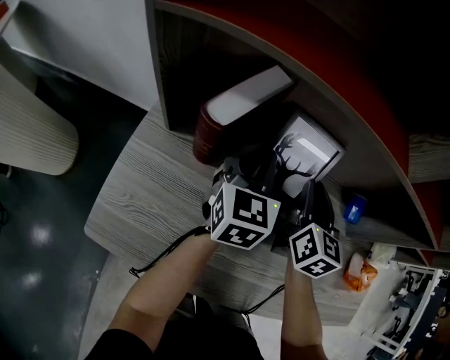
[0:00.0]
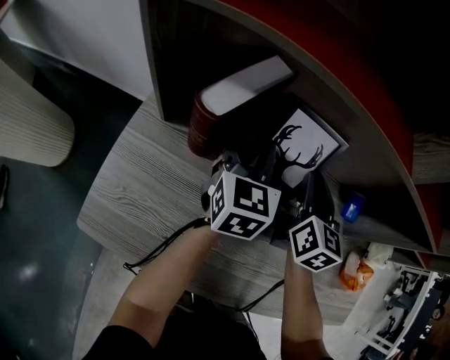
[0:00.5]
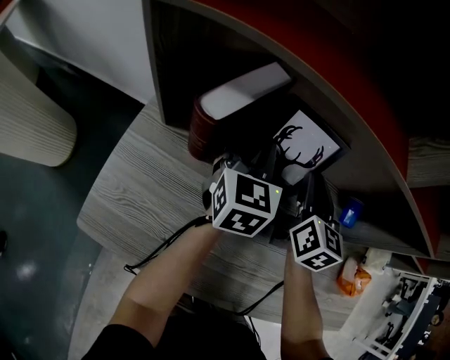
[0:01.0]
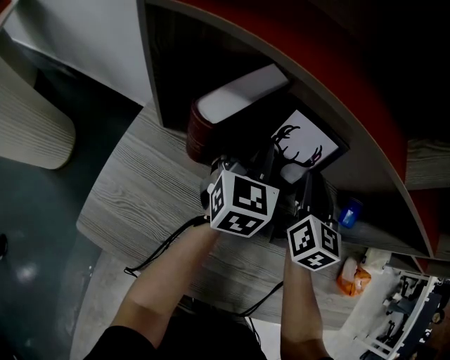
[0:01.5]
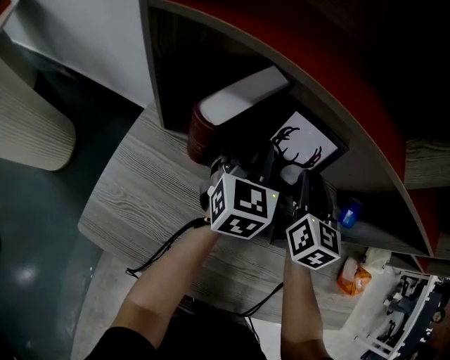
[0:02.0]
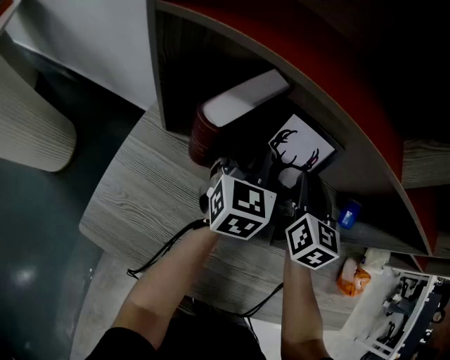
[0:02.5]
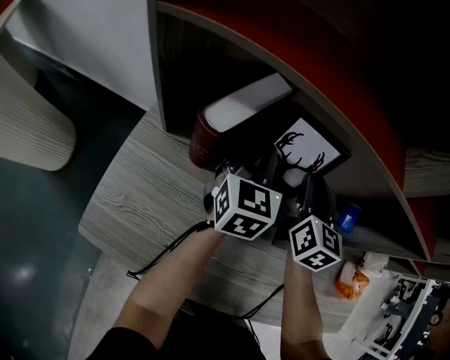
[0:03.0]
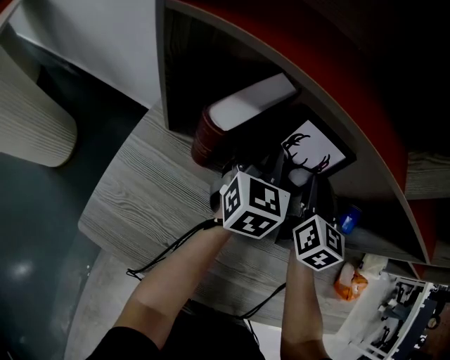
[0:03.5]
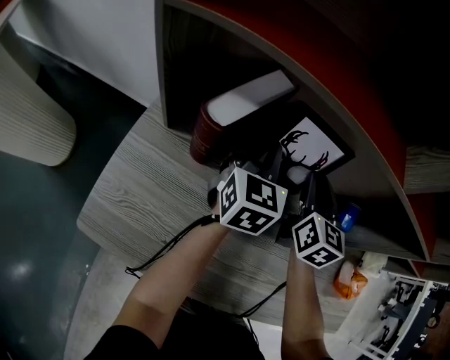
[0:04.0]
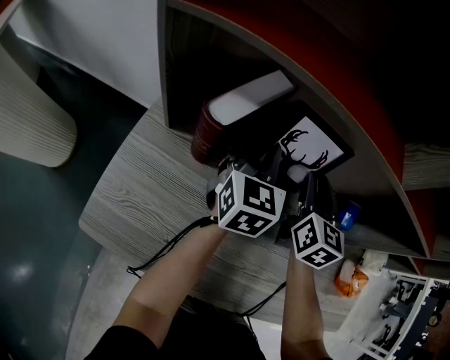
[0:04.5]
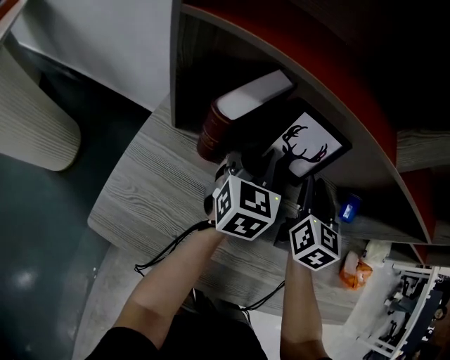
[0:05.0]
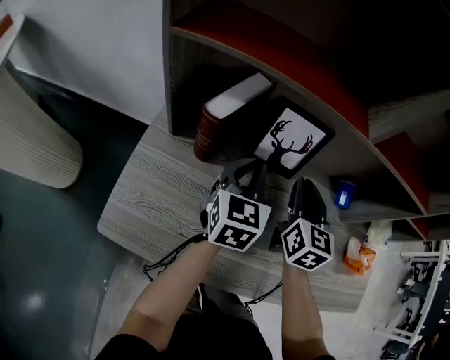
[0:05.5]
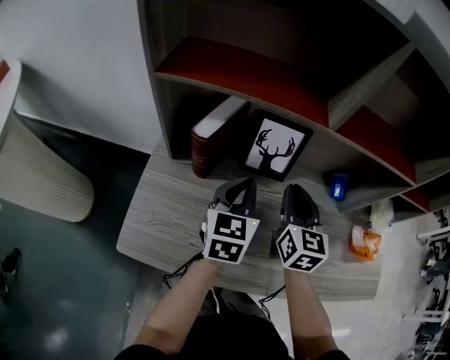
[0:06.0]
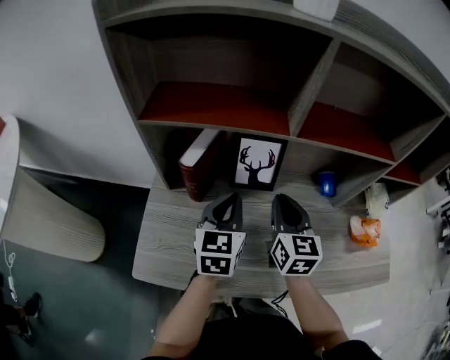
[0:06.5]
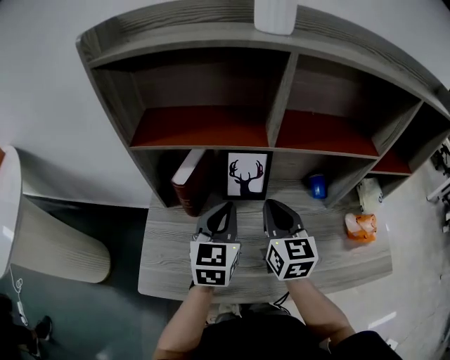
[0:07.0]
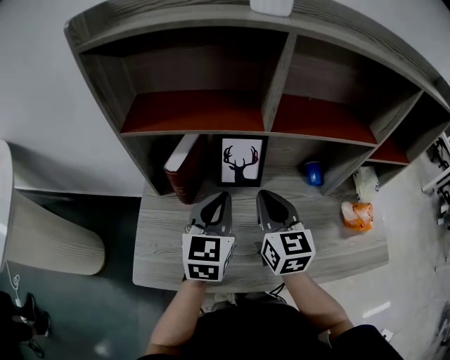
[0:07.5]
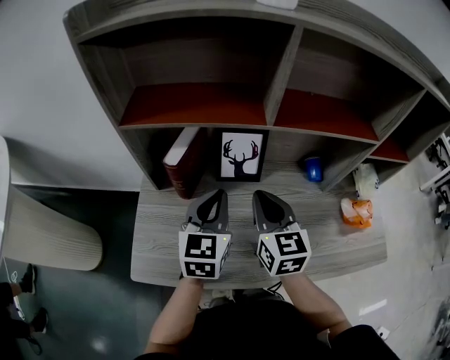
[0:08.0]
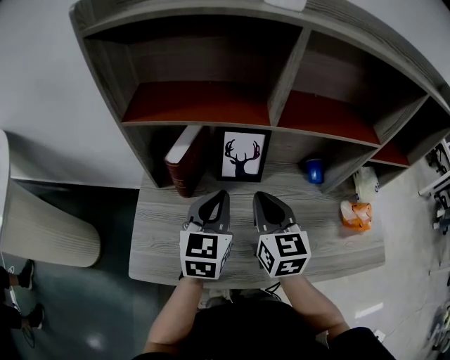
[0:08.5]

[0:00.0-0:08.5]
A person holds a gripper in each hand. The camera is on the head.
0:00.0 to 0:04.0: There are only small adjustments of the grippers.
0:04.0 to 0:06.5: Both grippers move backward and upward, approximately 15 cm.
0:06.5 to 0:08.5: The grippers make only small movements.

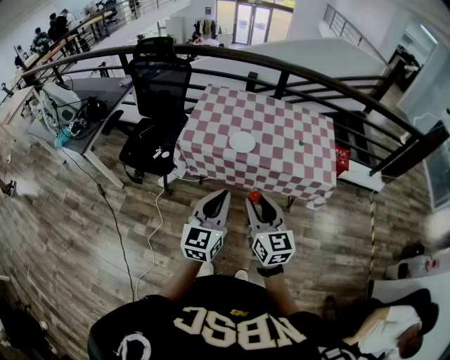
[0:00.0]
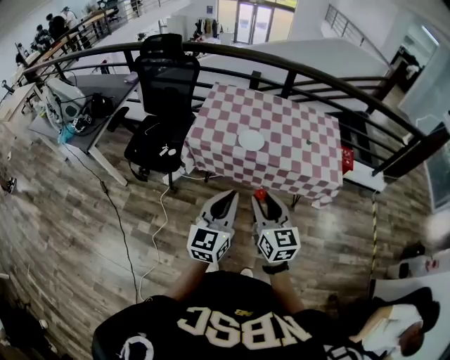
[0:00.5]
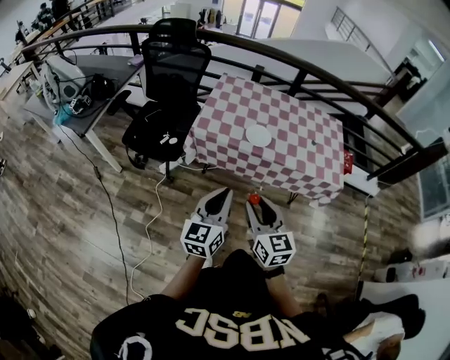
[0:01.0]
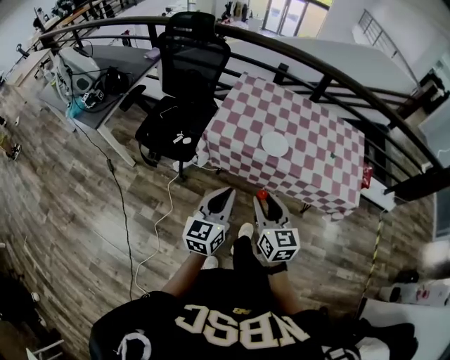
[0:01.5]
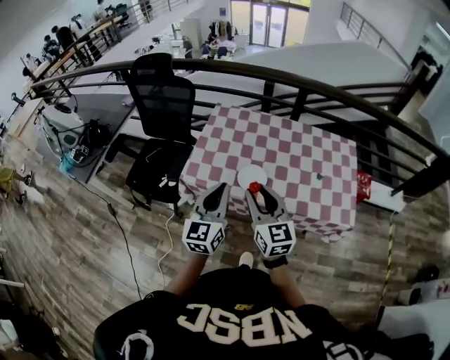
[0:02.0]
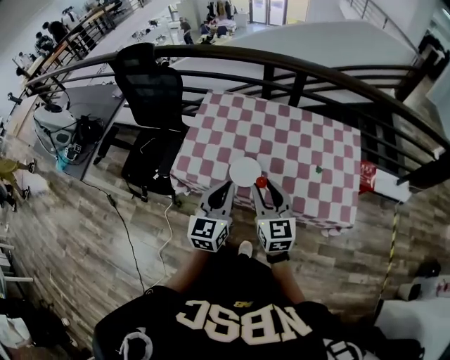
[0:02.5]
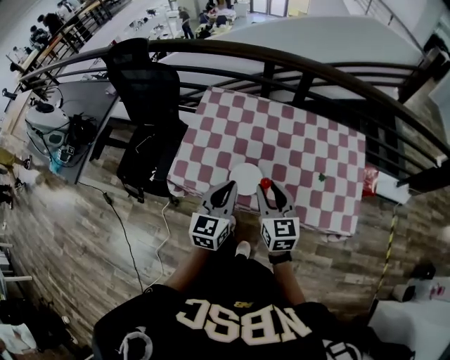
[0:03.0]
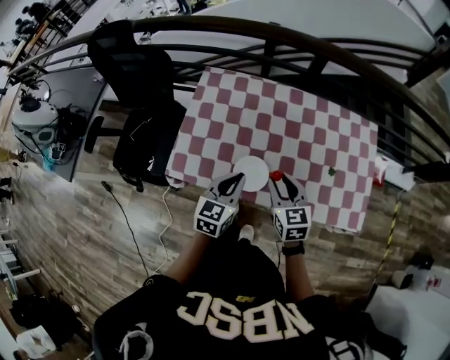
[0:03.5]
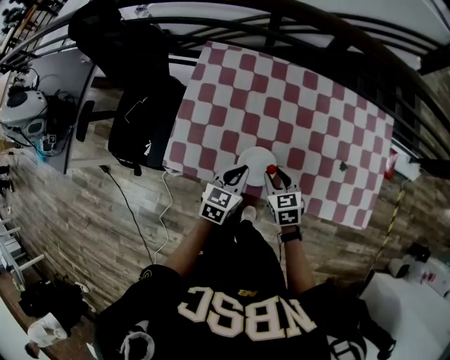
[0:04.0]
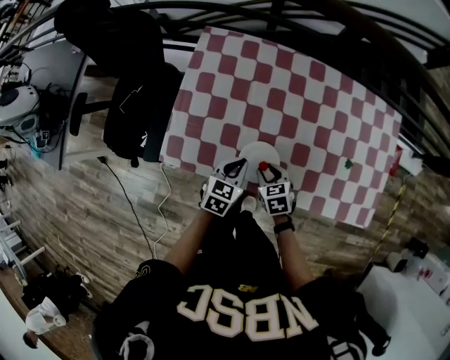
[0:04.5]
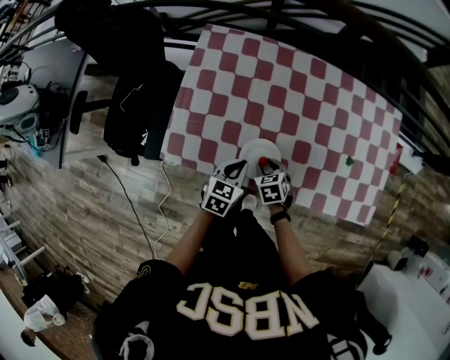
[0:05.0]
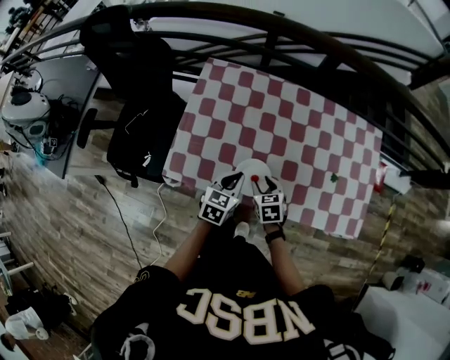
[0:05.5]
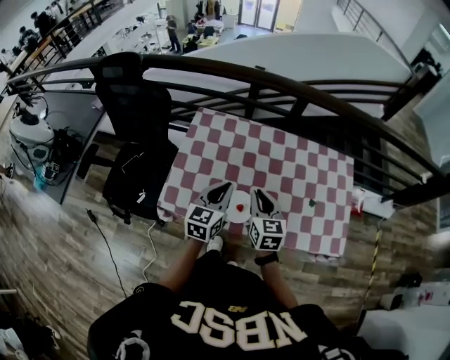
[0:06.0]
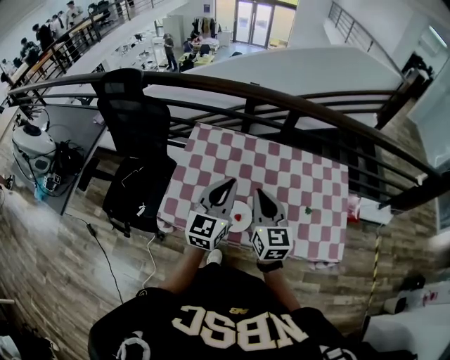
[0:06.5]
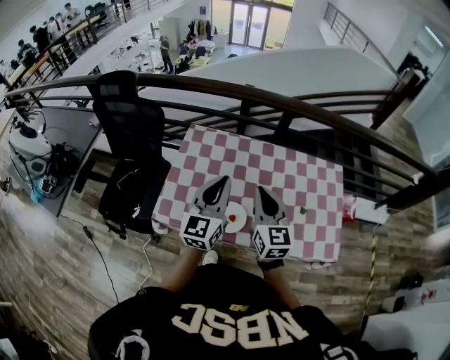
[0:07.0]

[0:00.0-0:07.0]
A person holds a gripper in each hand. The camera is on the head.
0:00.0 to 0:02.0: Both grippers move forward, about 25 cm.
0:02.0 to 0:03.5: The left gripper goes some 25 cm forward and downward, and rotates approximately 30 degrees; the right gripper heads forward, downward and to the right, covering some 25 cm, and changes its angle by about 30 degrees.
0:03.5 to 0:05.0: Both grippers move downward, some 20 cm. The right gripper angles its fingers downward, by approximately 30 degrees.
0:05.0 to 0:07.0: Both grippers travel together upward, approximately 35 cm. The left gripper tips its fingers upward by roughly 50 degrees, while the right gripper tips its fingers upward by some 60 degrees, and closes its fingers.

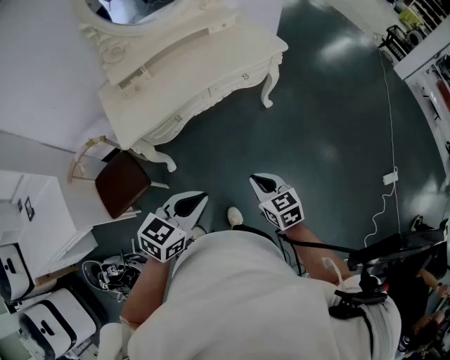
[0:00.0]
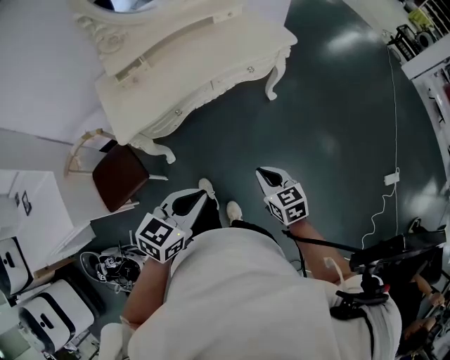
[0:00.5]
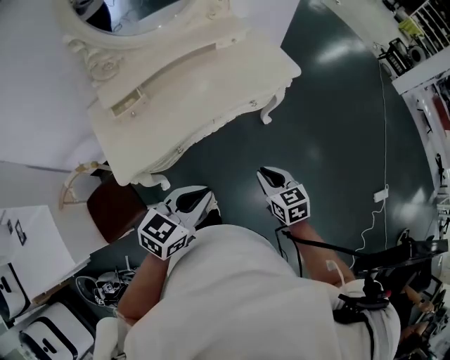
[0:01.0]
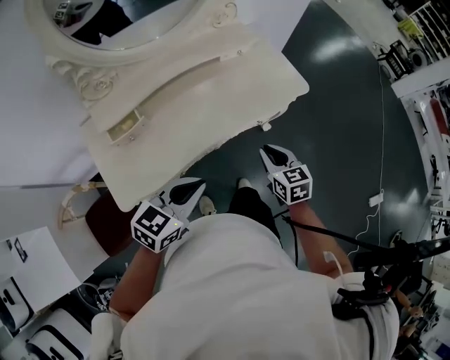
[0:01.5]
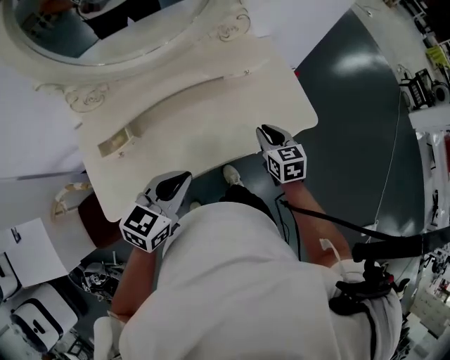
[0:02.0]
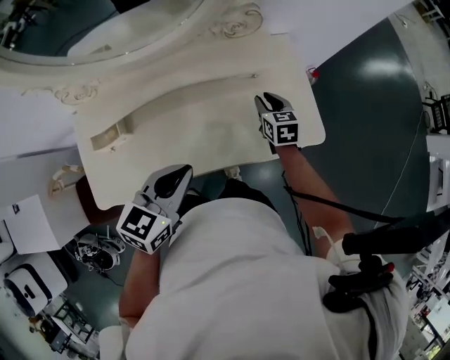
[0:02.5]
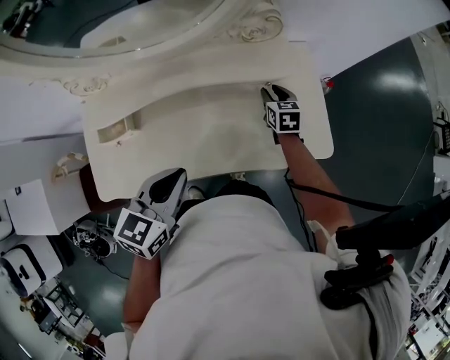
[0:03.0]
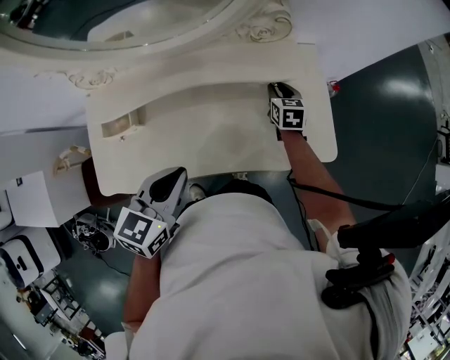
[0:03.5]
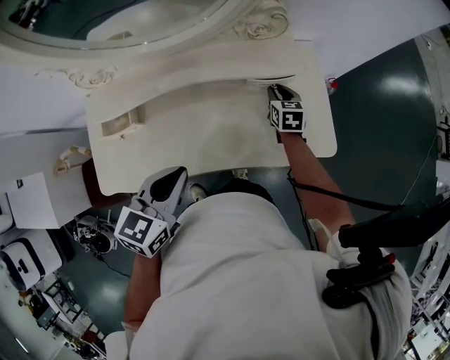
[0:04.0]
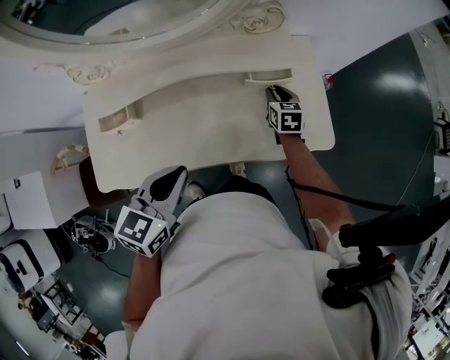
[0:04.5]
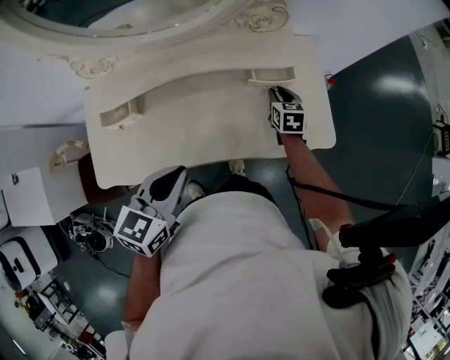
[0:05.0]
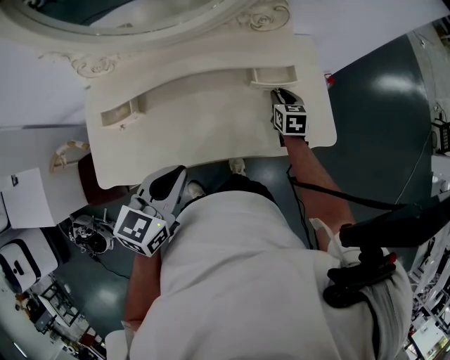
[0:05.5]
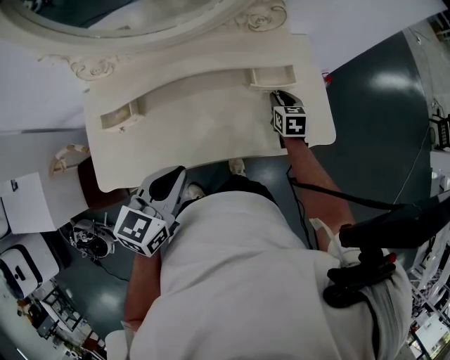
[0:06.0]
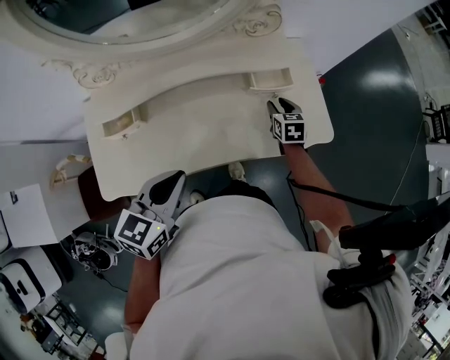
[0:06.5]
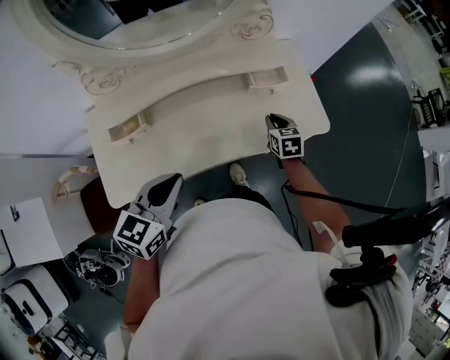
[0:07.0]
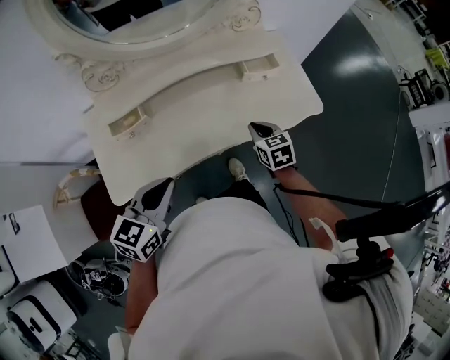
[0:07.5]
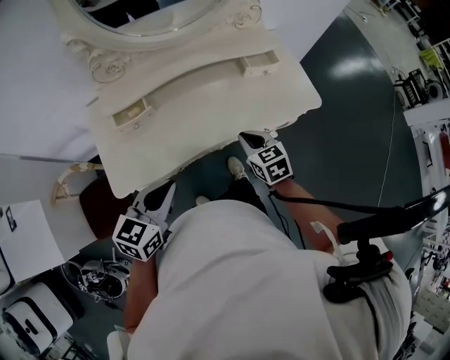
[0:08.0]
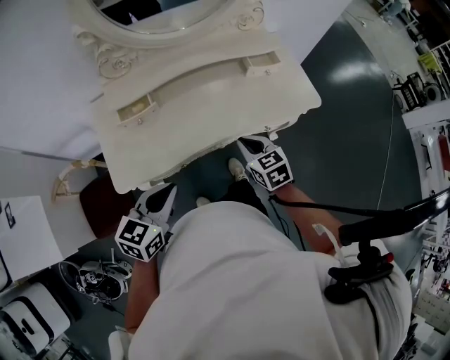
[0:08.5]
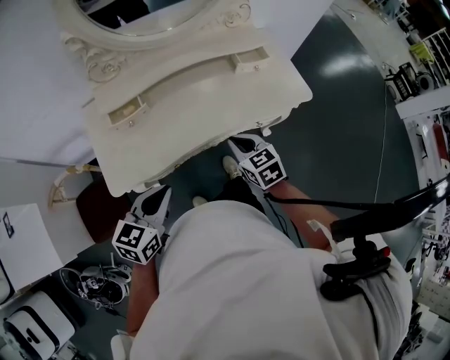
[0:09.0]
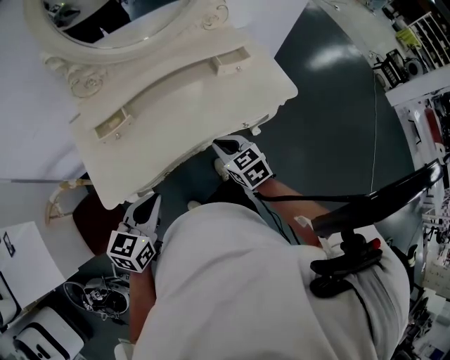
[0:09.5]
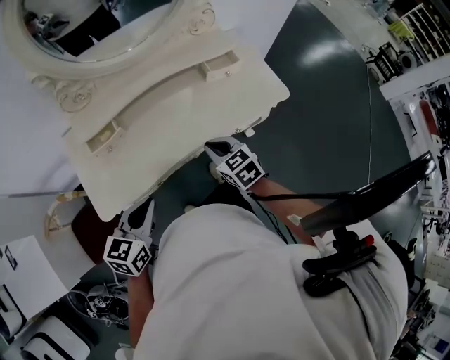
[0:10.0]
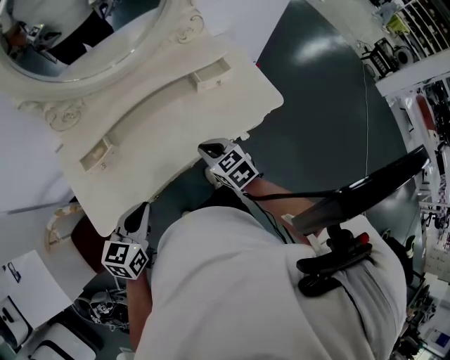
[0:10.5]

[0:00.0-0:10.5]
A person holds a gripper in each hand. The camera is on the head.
0:00.0 to 0:02.0: The pair of grippers is taken forward, about 60 cm.
0:02.0 to 0:04.0: The right gripper moves forward and downward, about 25 cm. The left gripper heads forward, covering about 5 cm, and swivels roughly 20 degrees.
0:04.0 to 0:06.5: Both grippers travel together backward, approximately 5 cm.
0:06.5 to 0:08.5: The right gripper heads backward and to the left, covering some 35 cm, and closes, while the left gripper travels backward and to the left by approximately 20 cm.
0:08.5 to 0:10.5: Both grippers travel together forward, roughly 5 cm.

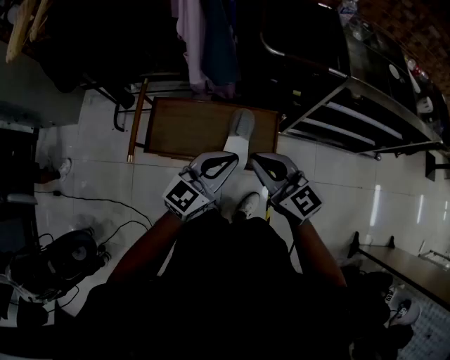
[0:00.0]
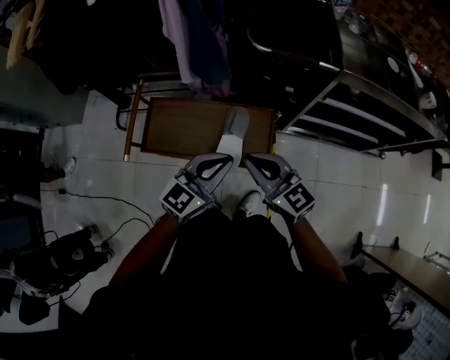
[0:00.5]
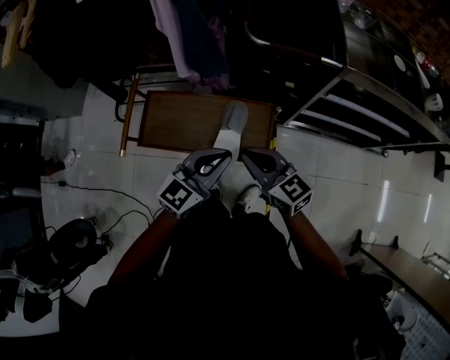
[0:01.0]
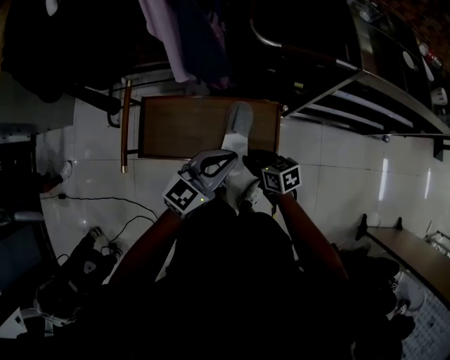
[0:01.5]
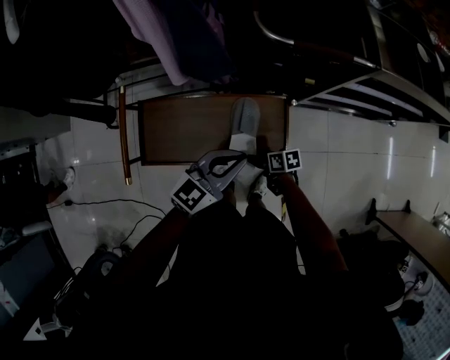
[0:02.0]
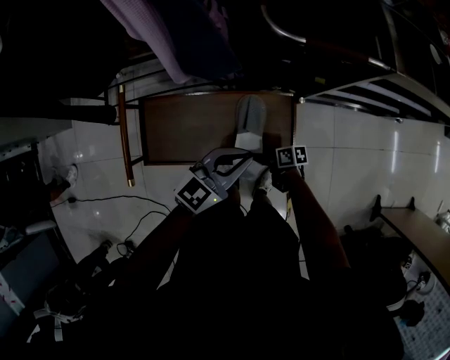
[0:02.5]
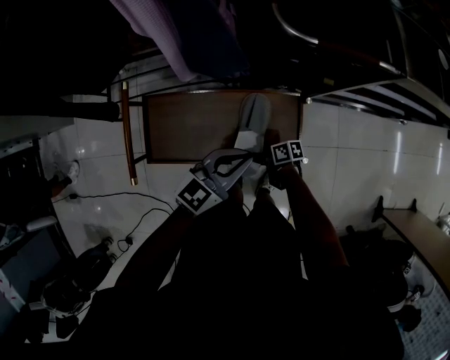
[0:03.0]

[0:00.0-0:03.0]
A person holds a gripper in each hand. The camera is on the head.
0:00.0 to 0:01.5: The left gripper heads downward and forward, covering about 10 cm. The right gripper heads downward, covering some 25 cm, swivels roughly 40 degrees, and opens.
0:01.5 to 0:03.0: The right gripper shifts roughly 20 cm downward, swivels some 40 degrees, and opens. The left gripper moves downward, roughly 5 cm.
